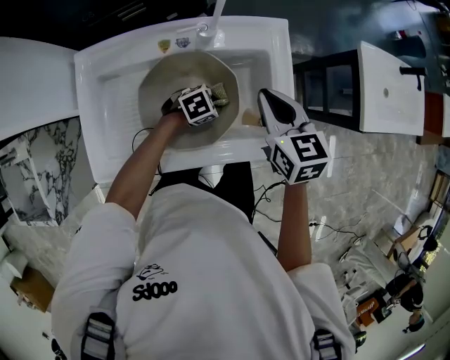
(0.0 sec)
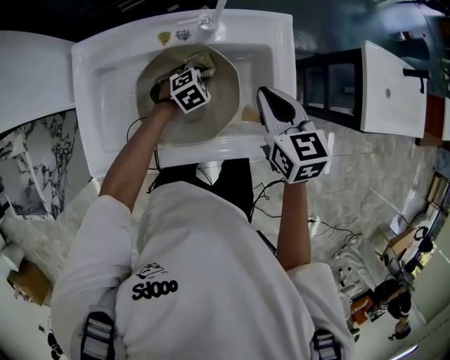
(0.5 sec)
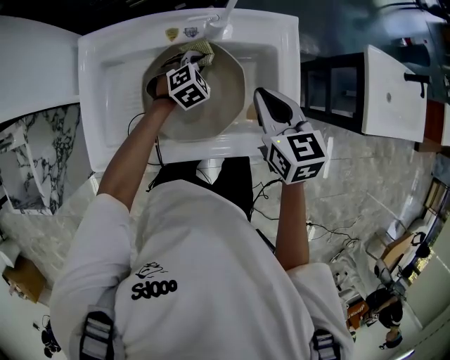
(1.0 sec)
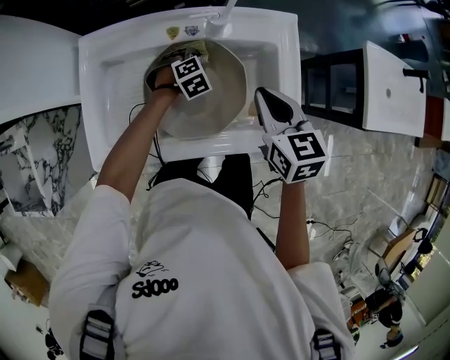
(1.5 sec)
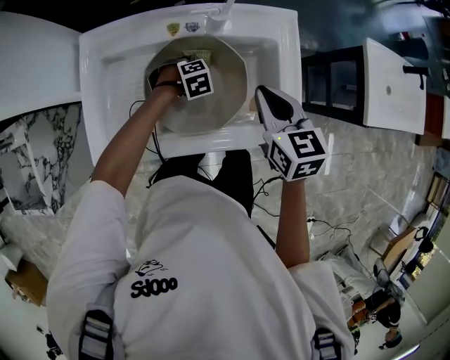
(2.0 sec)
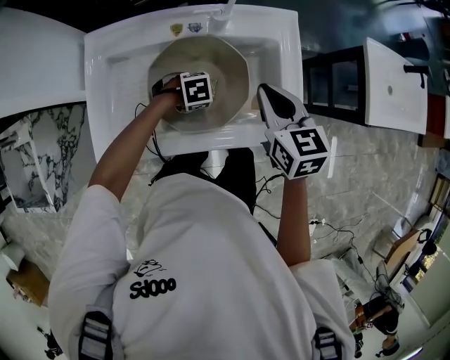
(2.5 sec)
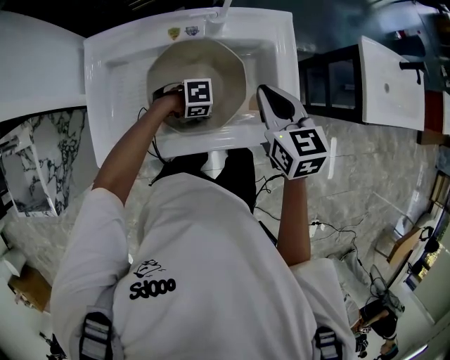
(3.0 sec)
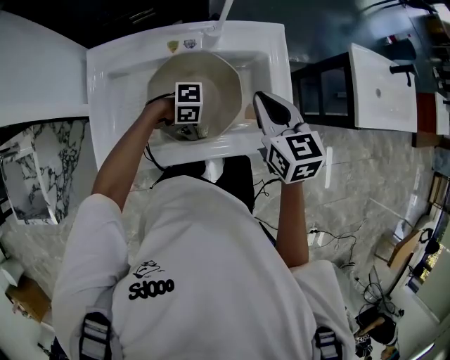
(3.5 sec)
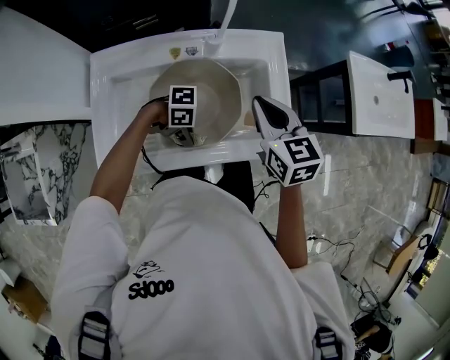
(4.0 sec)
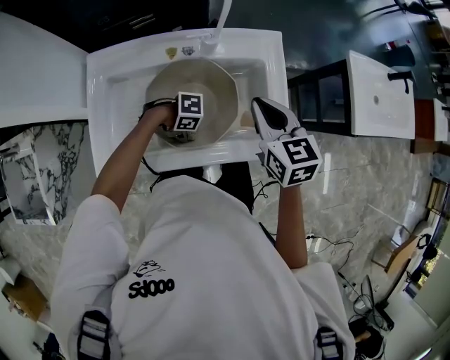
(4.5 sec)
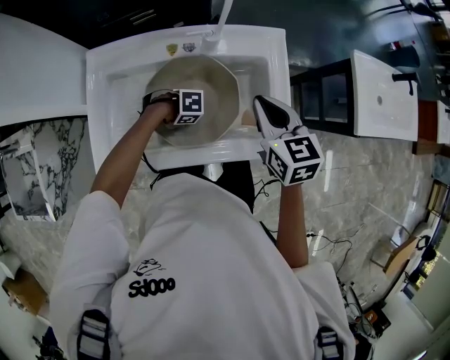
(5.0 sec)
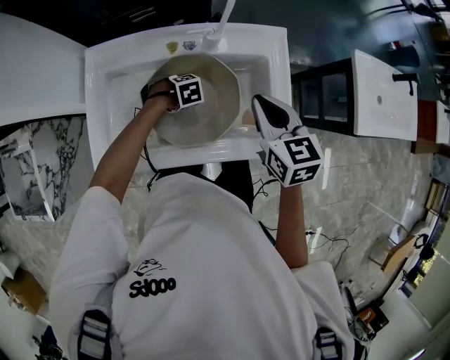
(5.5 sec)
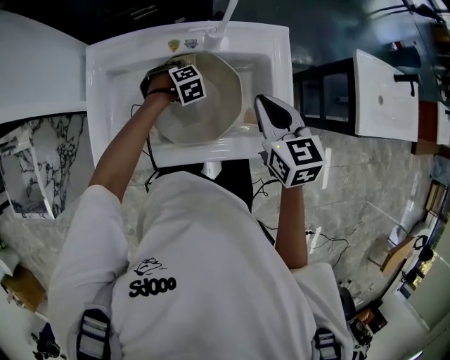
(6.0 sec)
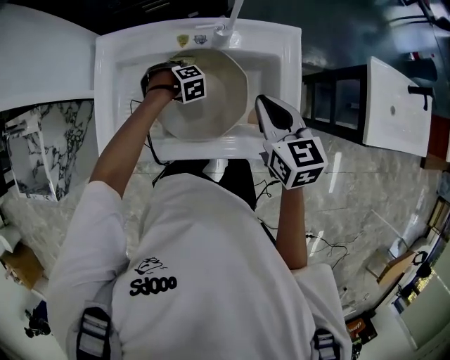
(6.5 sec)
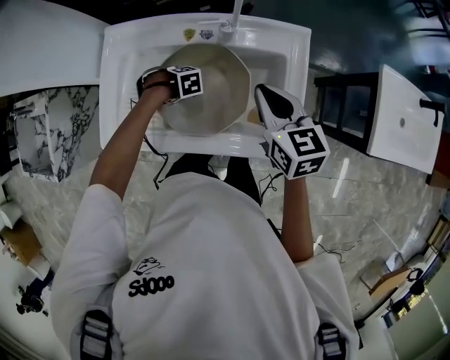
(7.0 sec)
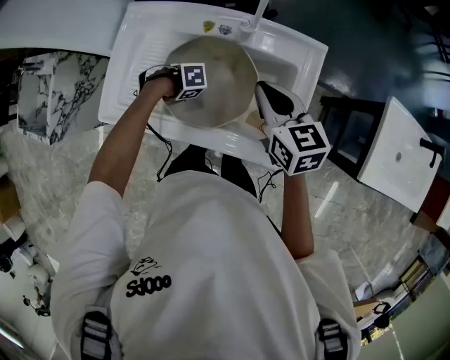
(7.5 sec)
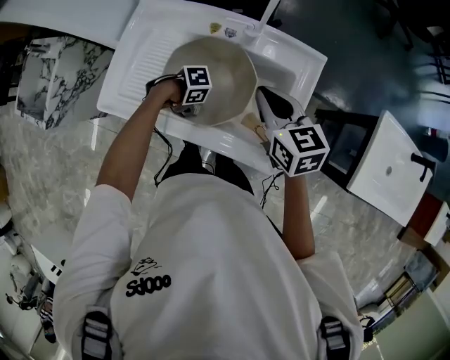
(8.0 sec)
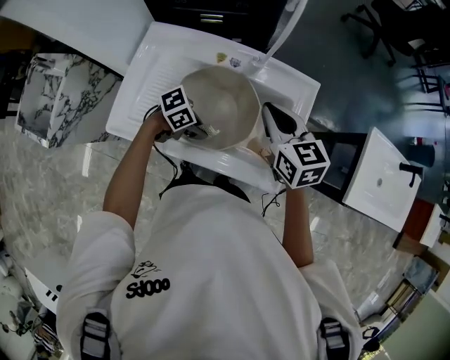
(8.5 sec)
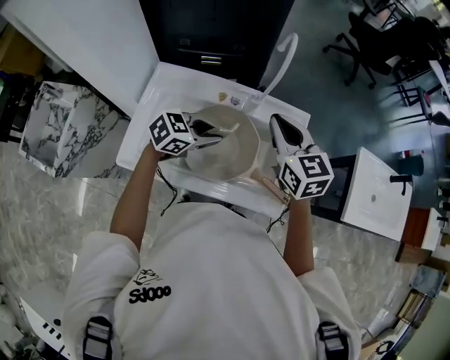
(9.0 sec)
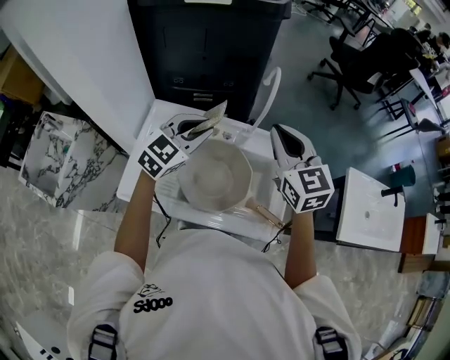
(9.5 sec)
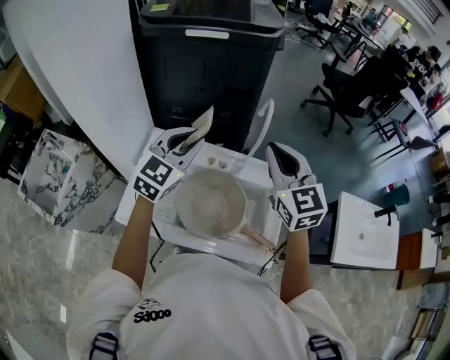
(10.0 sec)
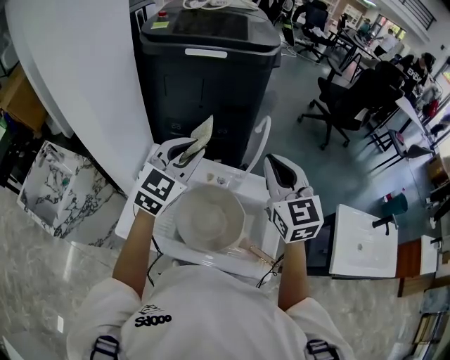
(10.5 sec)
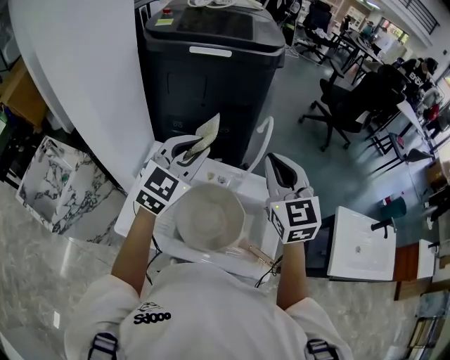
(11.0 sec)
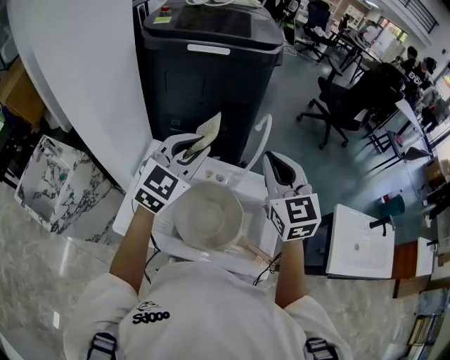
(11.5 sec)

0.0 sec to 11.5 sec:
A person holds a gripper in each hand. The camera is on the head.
0.0 sec to 2.0 sec: The left gripper moves some 10 cm, and changes its angle by about 30 degrees.
2.0 sec to 4.0 sec: The left gripper moves some 20 cm, and angles its fingers upward, by roughly 40 degrees.
4.0 sec to 6.0 sec: The left gripper shifts by approximately 20 cm, and tilts its fingers some 40 degrees downward.
6.0 sec to 7.5 sec: The right gripper rotates approximately 20 degrees. Meanwhile the left gripper changes place by some 15 cm, and rotates about 50 degrees.
7.5 sec to 9.5 sec: The left gripper heads upward, covering some 35 cm, and angles its fingers upward, by roughly 40 degrees, while the right gripper moves upward, some 20 cm, and rotates some 30 degrees.
9.5 sec to 11.5 sec: The right gripper heads upward, covering roughly 5 cm; the left gripper heads upward, covering about 10 cm.

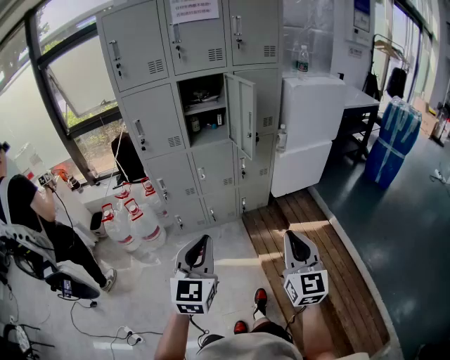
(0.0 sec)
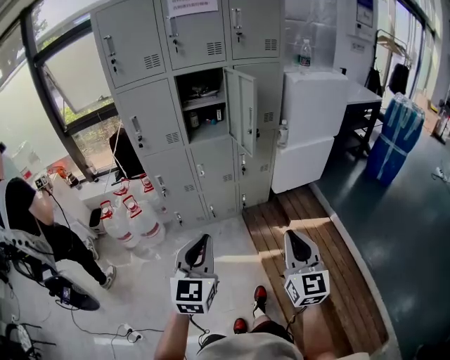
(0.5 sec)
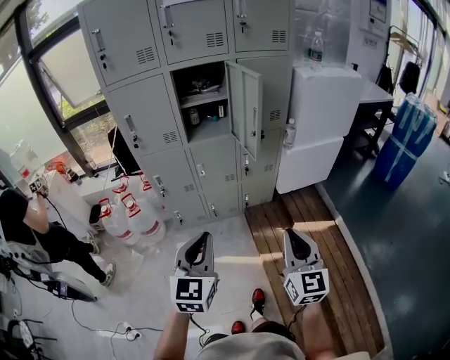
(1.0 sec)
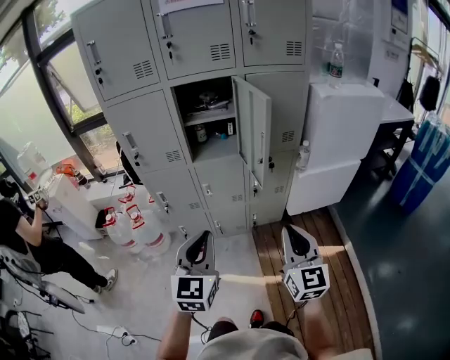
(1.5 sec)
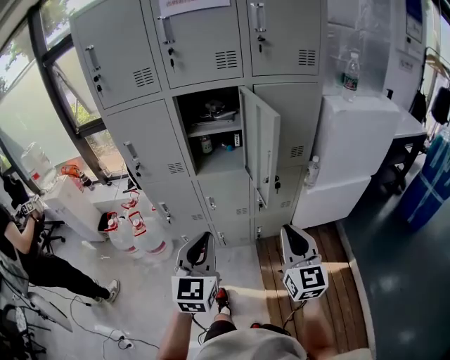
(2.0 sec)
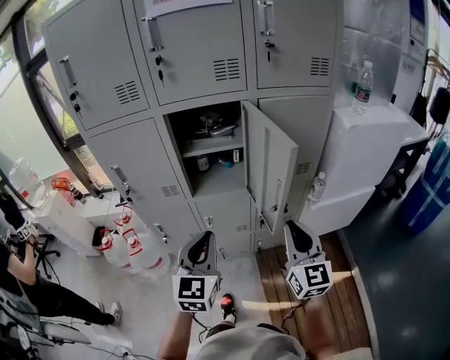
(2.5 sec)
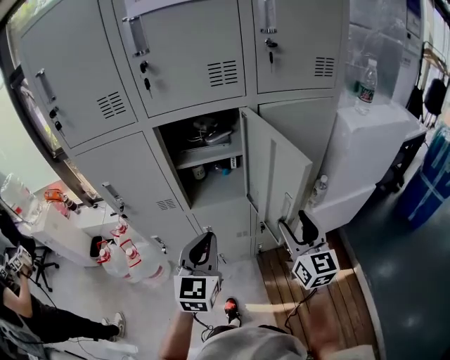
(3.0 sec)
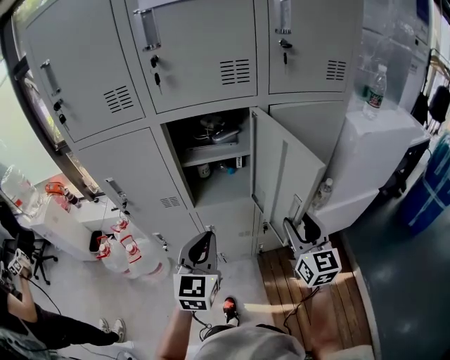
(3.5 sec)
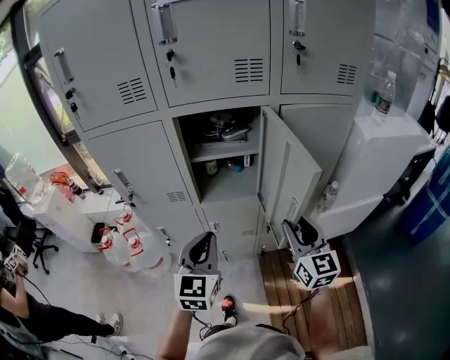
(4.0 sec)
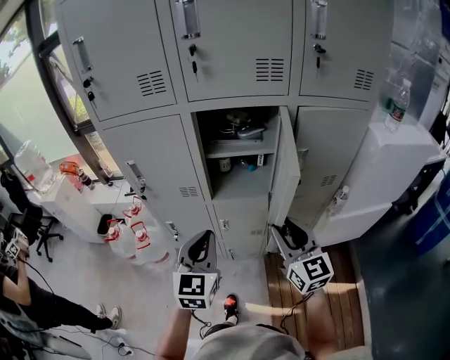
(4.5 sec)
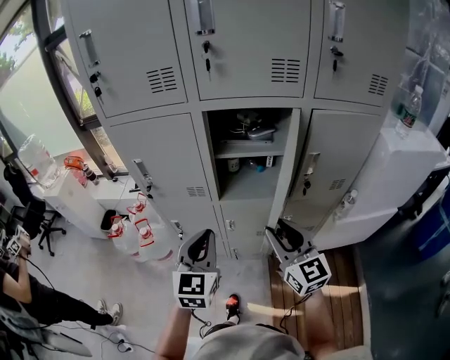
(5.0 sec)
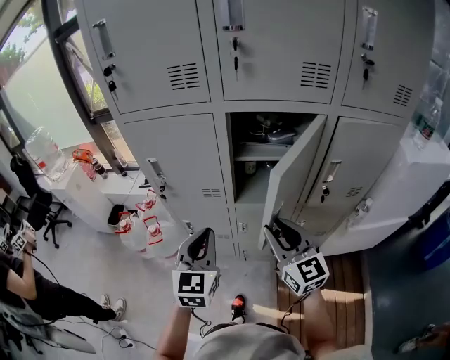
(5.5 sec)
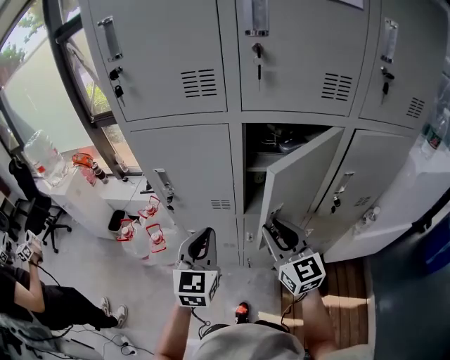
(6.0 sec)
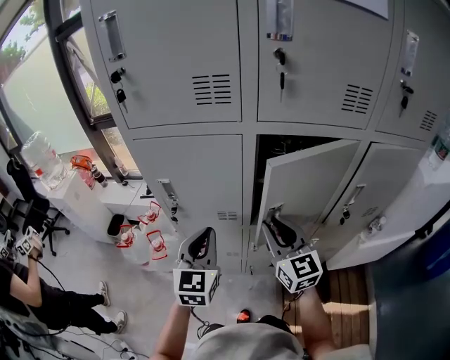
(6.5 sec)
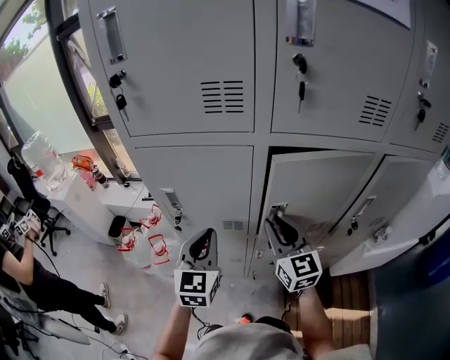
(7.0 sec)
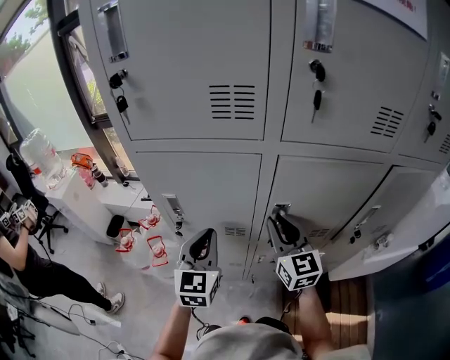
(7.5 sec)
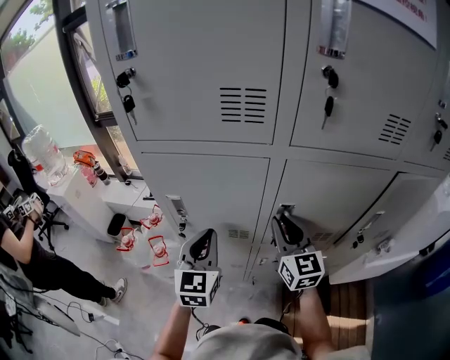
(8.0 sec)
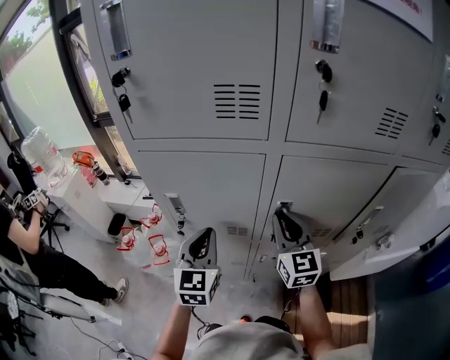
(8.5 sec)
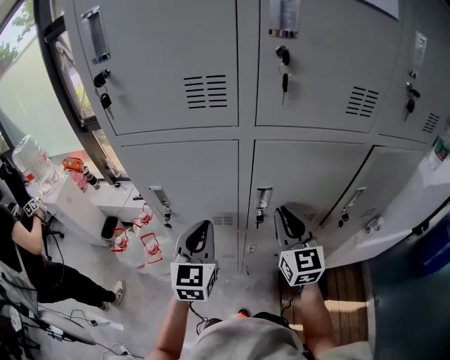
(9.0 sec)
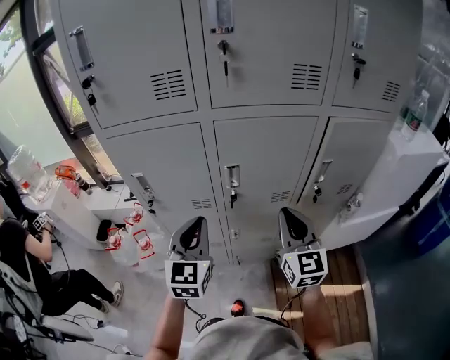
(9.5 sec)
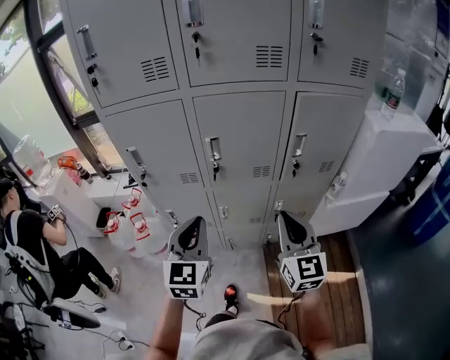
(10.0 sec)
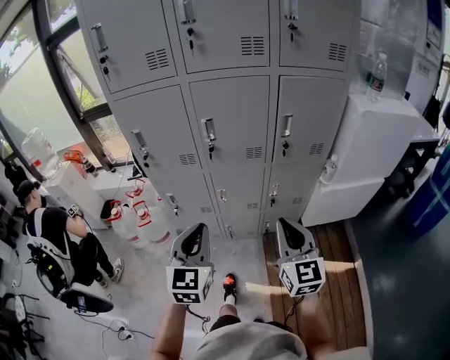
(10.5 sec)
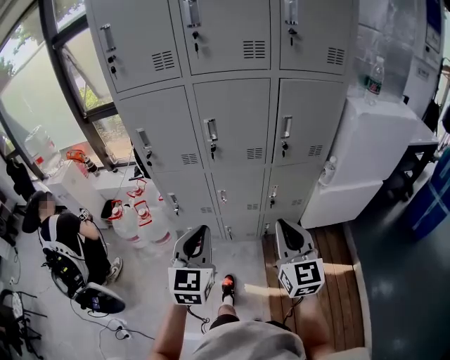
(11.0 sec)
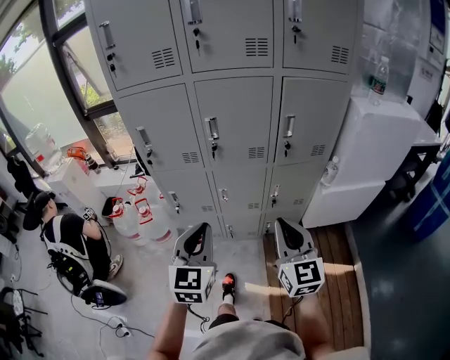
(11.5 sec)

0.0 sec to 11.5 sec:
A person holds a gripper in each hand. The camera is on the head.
0.0 sec to 2.0 sec: The two grippers go roughly 30 cm forward.
2.0 sec to 4.0 sec: Both grippers move forward, some 20 cm. The right gripper opens.
4.0 sec to 6.0 sec: Both grippers move to the left and forward, roughly 20 cm.
6.0 sec to 7.5 sec: Both grippers move forward, roughly 10 cm.
7.5 sec to 9.5 sec: The right gripper shifts roughly 20 cm backward and to the right. The left gripper shifts roughly 10 cm backward and to the right.
9.5 sec to 11.5 sec: The grippers both shift backward by some 25 cm.

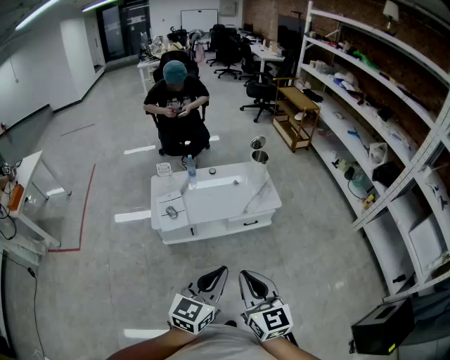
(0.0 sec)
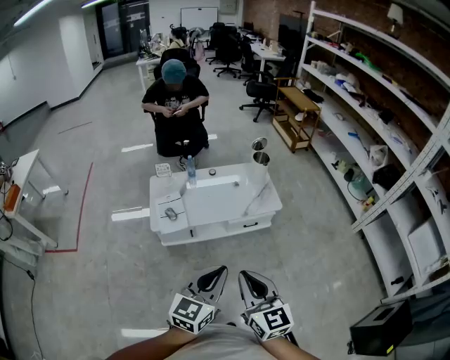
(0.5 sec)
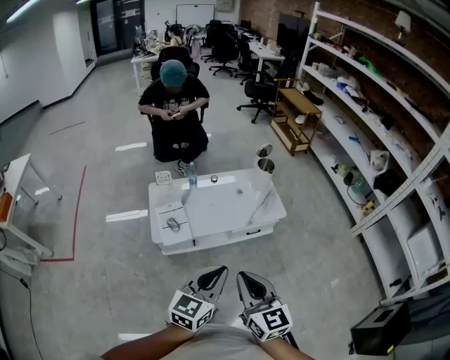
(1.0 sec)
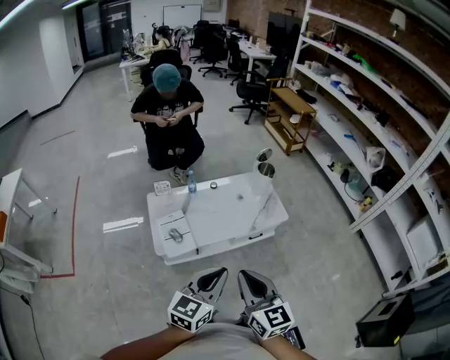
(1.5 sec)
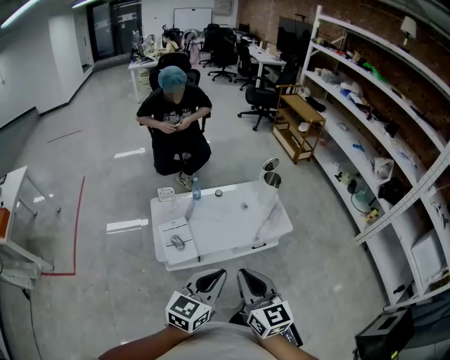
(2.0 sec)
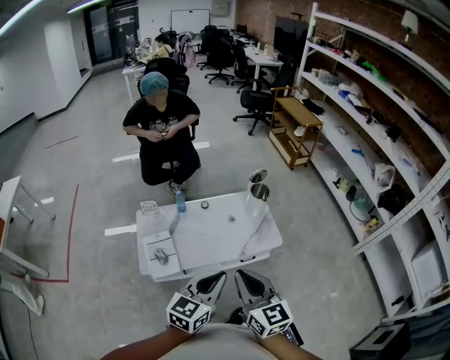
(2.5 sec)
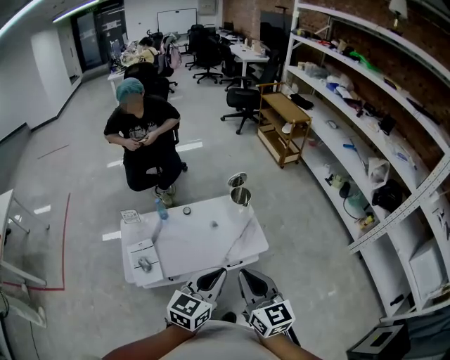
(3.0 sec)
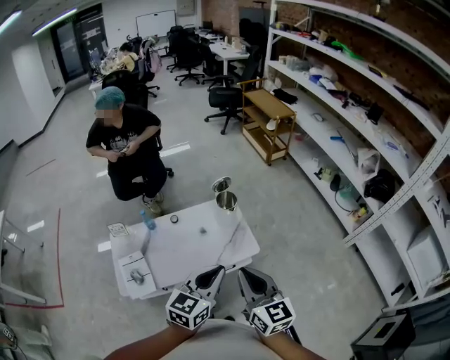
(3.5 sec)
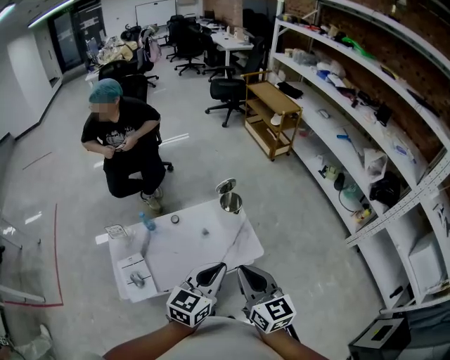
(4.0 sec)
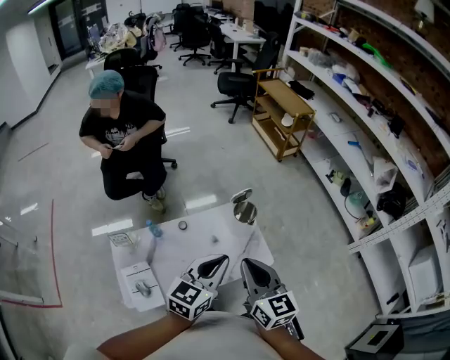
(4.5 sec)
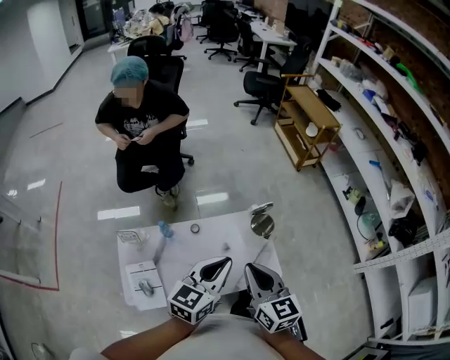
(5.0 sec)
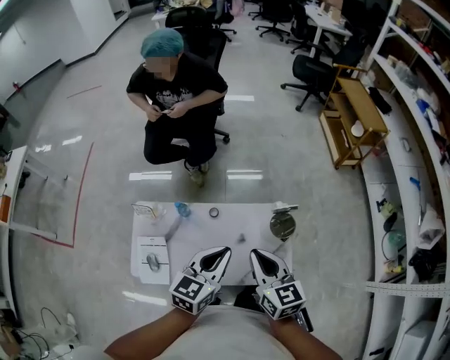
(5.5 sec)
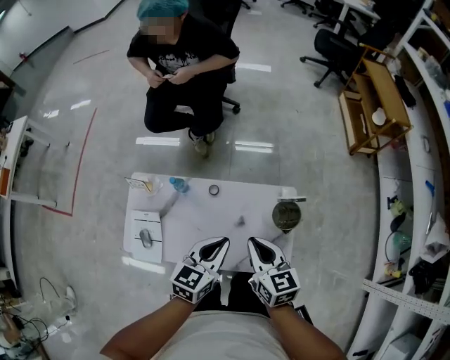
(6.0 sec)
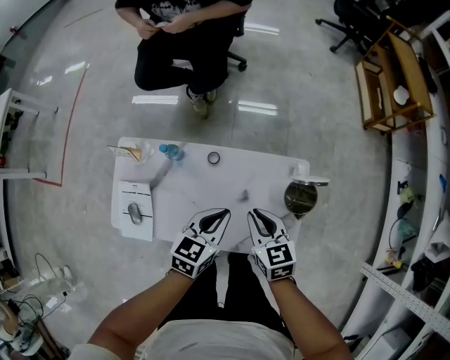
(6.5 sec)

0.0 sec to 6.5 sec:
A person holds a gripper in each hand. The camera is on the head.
0.0 sec to 2.0 sec: Both grippers travel together forward and to the left, about 25 cm.
2.0 sec to 4.5 sec: The pair of grippers is taken forward, roughly 40 cm.
4.5 sec to 6.5 sec: Both grippers move downward, about 30 cm. The left gripper swivels roughly 30 degrees; the right gripper rotates roughly 40 degrees.
